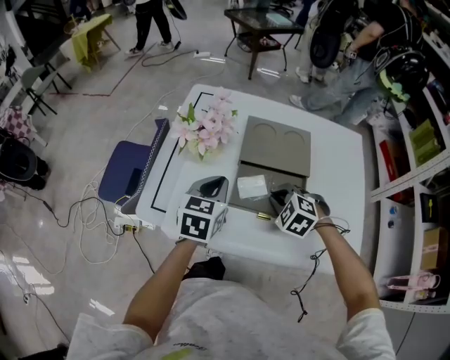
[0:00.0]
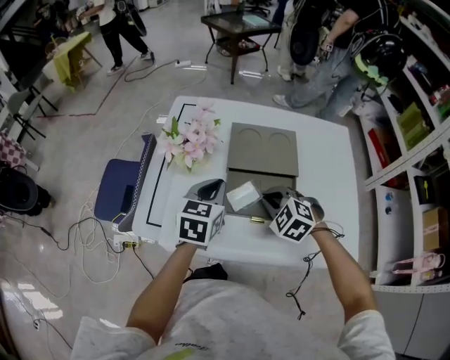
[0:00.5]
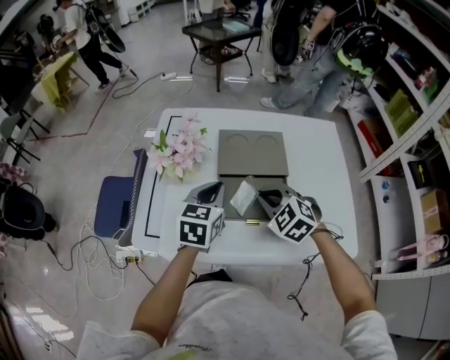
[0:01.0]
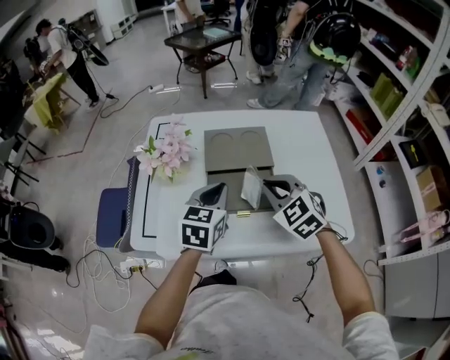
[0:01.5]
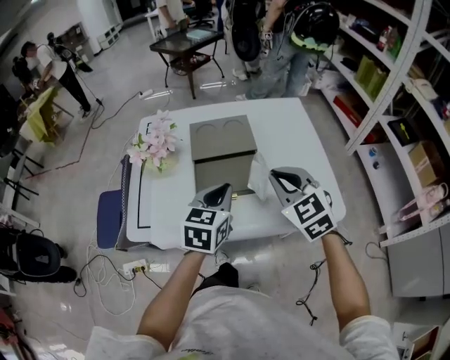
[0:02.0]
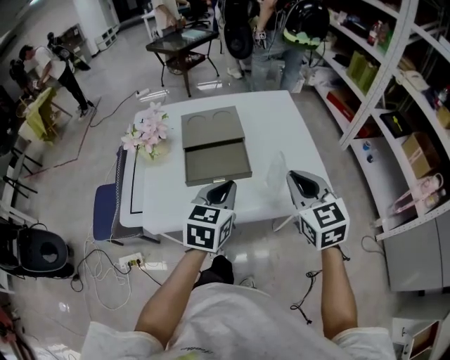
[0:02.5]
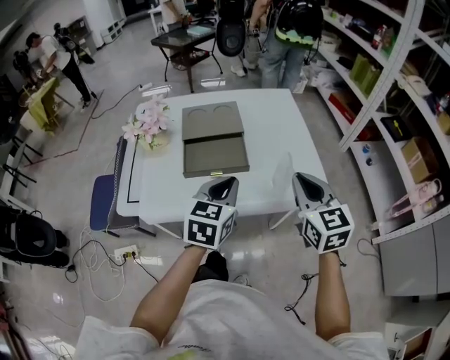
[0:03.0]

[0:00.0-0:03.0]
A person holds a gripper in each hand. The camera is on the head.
0:00.0 to 0:01.5: The left gripper shifts approximately 10 cm to the right, while the right gripper is displaced upward by some 15 cm, and changes its angle by roughly 40 degrees.
0:01.5 to 0:03.0: The right gripper shifts some 25 cm to the right and backward, and turns by approximately 40 degrees. The left gripper goes about 20 cm backward and to the right.

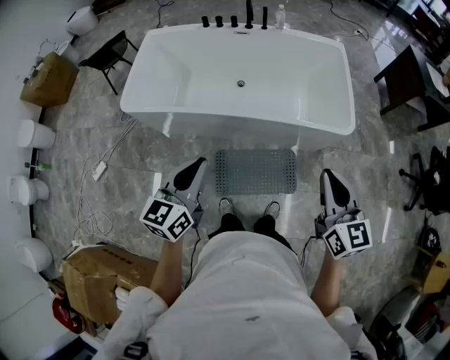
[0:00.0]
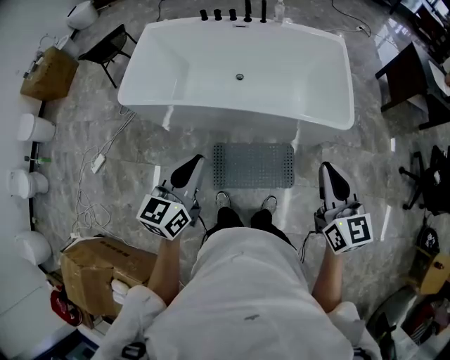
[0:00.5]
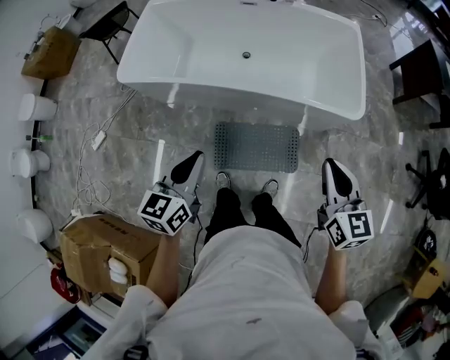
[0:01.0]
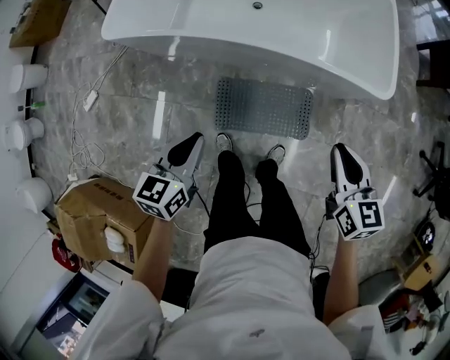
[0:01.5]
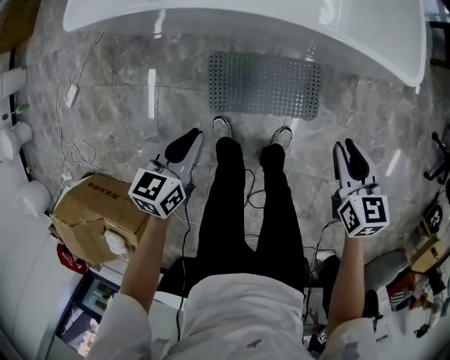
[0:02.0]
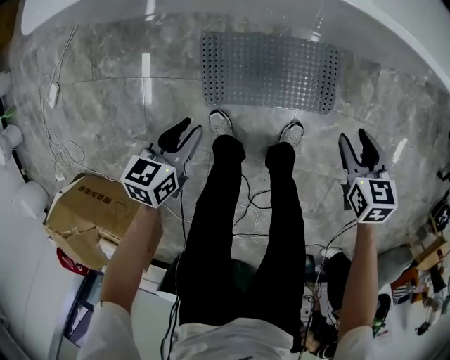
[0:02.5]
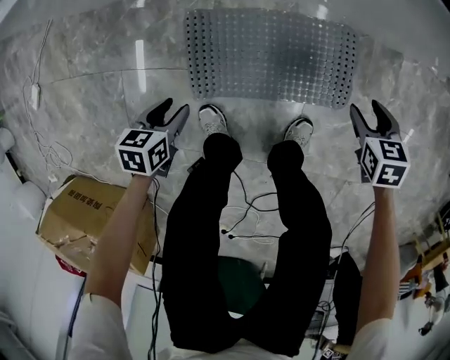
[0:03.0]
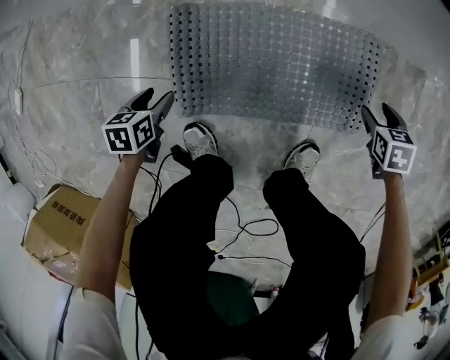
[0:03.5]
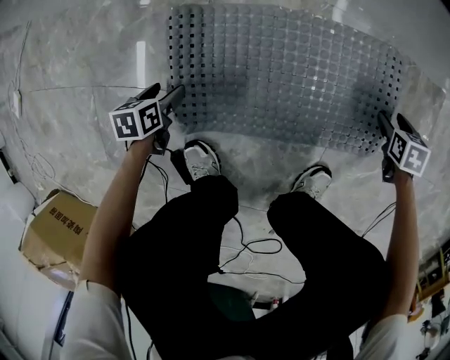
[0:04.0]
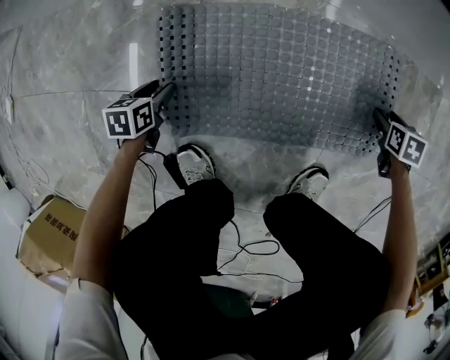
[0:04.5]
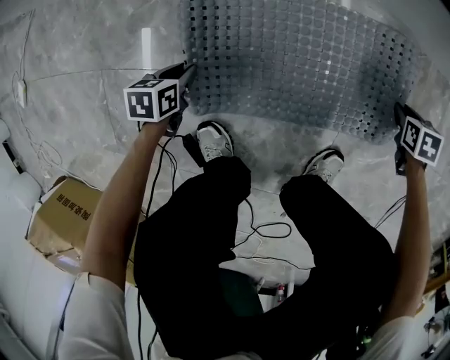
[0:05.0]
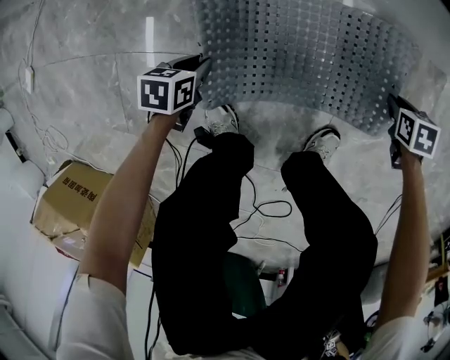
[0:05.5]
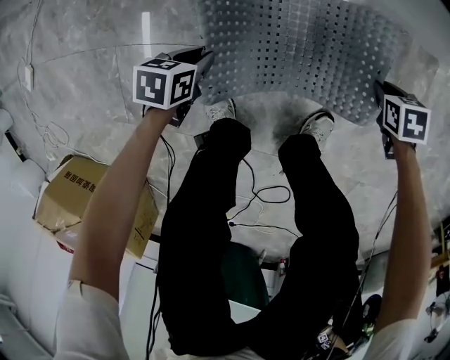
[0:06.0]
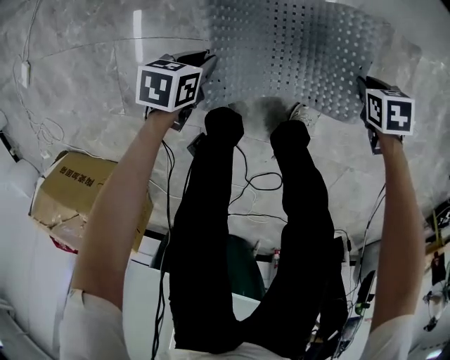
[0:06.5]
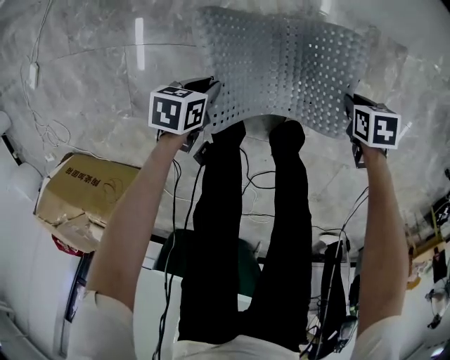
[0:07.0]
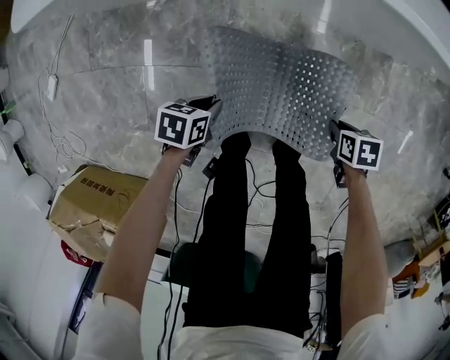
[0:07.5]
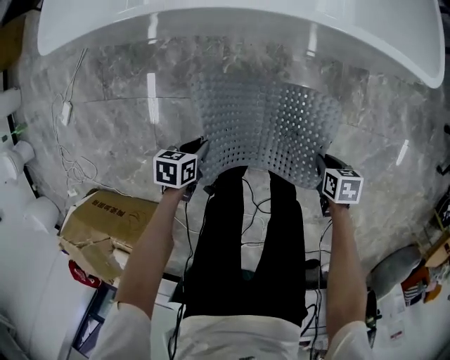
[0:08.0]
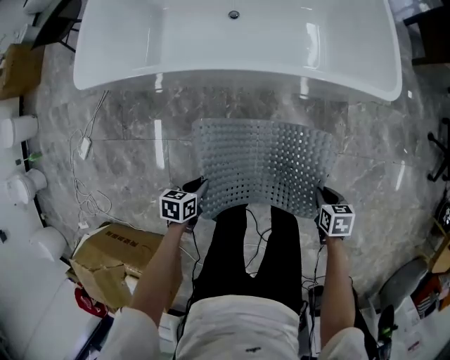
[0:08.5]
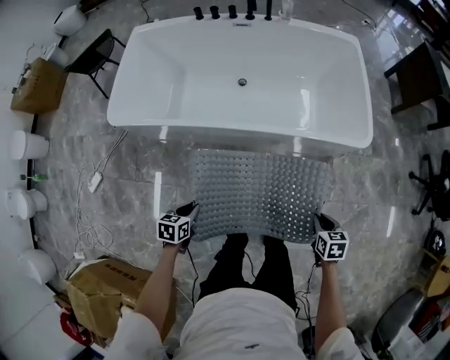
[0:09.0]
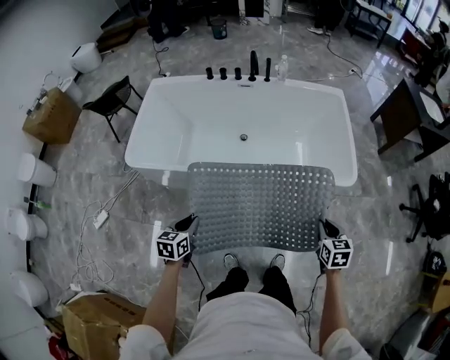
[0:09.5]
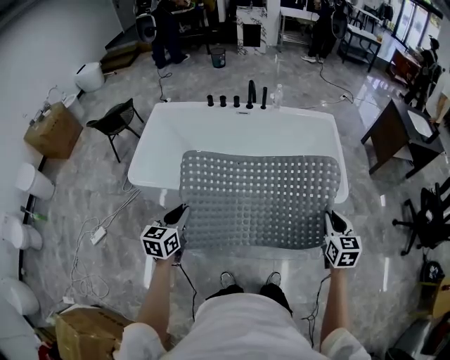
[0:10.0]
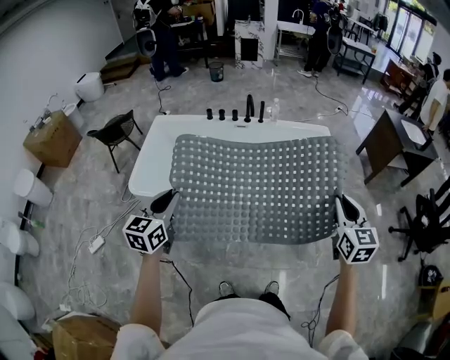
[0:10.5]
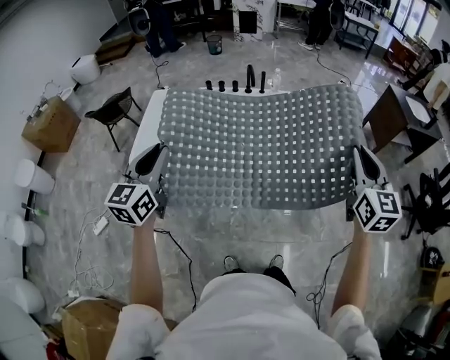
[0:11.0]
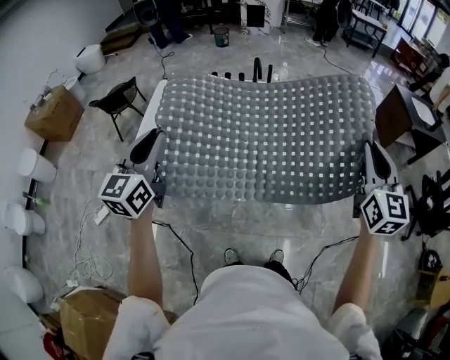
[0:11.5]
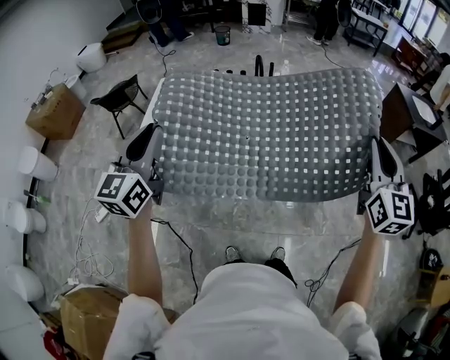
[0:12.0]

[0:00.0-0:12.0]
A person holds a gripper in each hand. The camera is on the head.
0:00.0 to 0:02.0: Both grippers travel together downward, approximately 35 cm. The left gripper turns by some 30 degrees. The right gripper tips its fingers downward by some 30 degrees.
0:02.0 to 0:04.0: The grippers both shift downward by roughly 70 cm. The right gripper tips its fingers downward by roughly 40 degrees, and opens. Meanwhile the left gripper changes its angle by roughly 30 degrees, and opens its fingers.
0:04.0 to 0:06.0: The grippers both shift upward by roughly 15 cm. The right gripper closes its fingers. The left gripper closes up.
0:06.0 to 0:08.0: The two grippers go some 30 cm upward. The right gripper rotates about 20 degrees.
0:08.0 to 0:10.0: The two grippers go roughly 50 cm upward. The left gripper angles its fingers upward, by about 40 degrees; the right gripper points its fingers roughly 50 degrees further upward.
0:10.0 to 0:12.0: The two grippers go roughly 25 cm upward. The right gripper points its fingers about 30 degrees further upward; the left gripper rotates roughly 30 degrees.

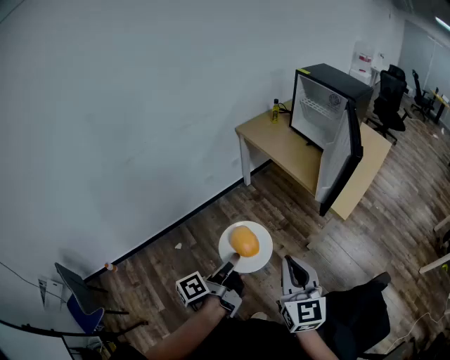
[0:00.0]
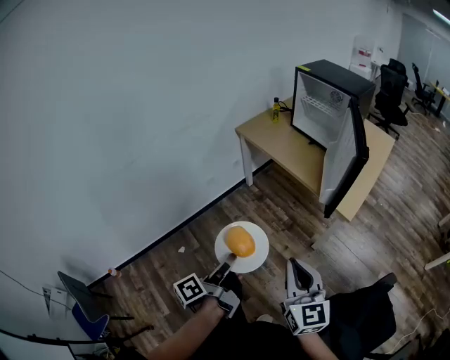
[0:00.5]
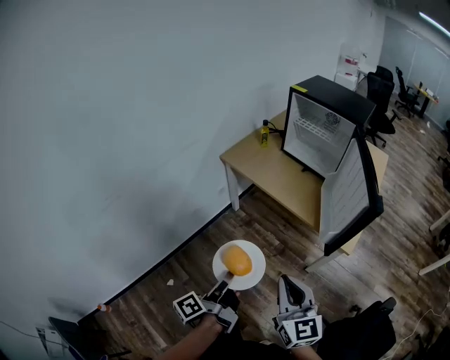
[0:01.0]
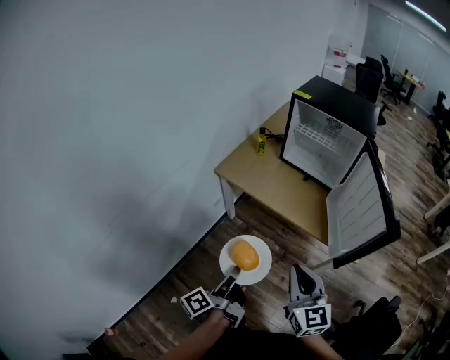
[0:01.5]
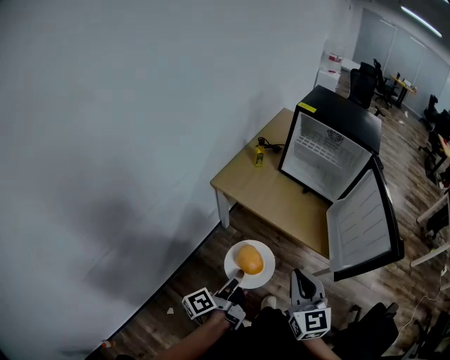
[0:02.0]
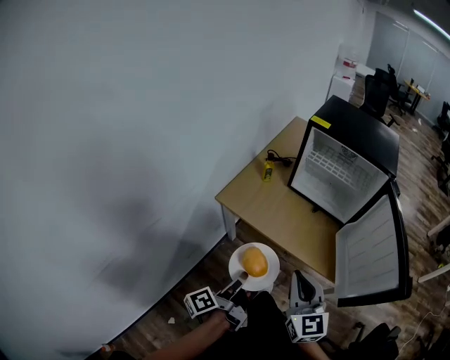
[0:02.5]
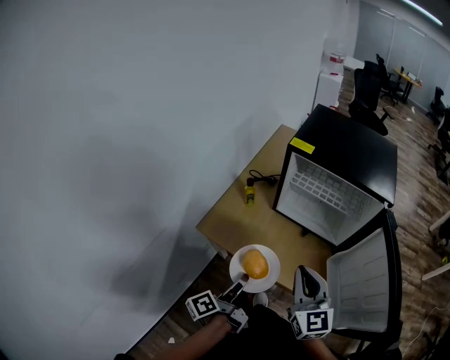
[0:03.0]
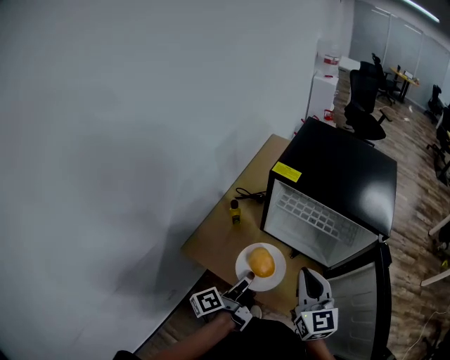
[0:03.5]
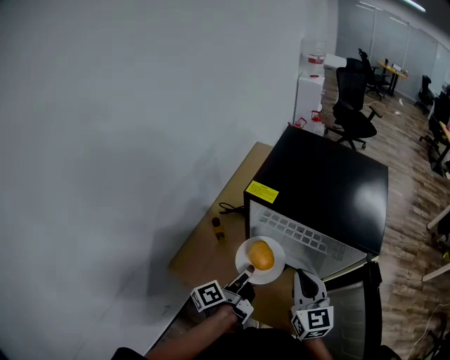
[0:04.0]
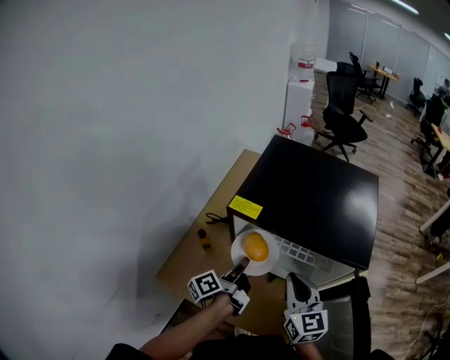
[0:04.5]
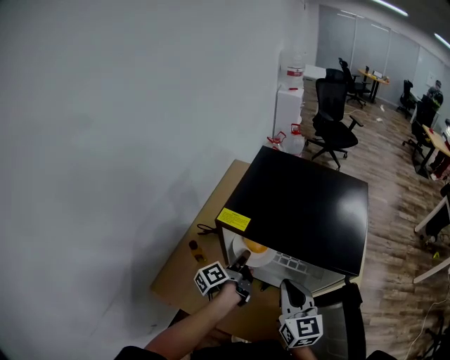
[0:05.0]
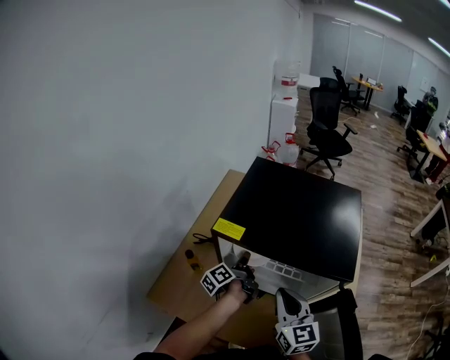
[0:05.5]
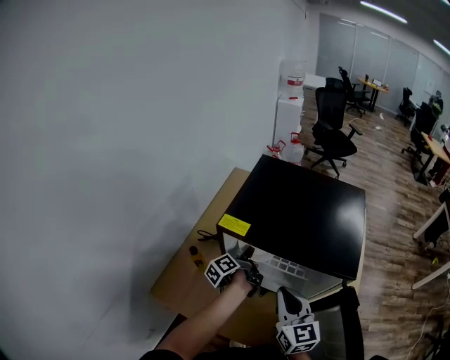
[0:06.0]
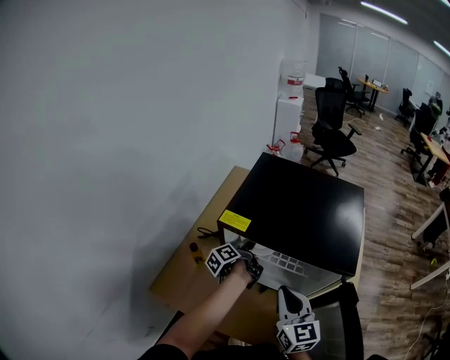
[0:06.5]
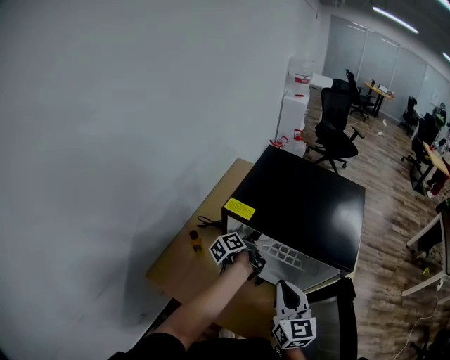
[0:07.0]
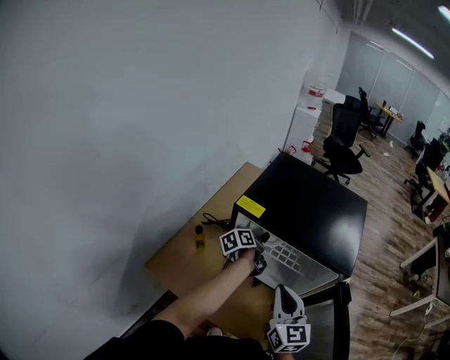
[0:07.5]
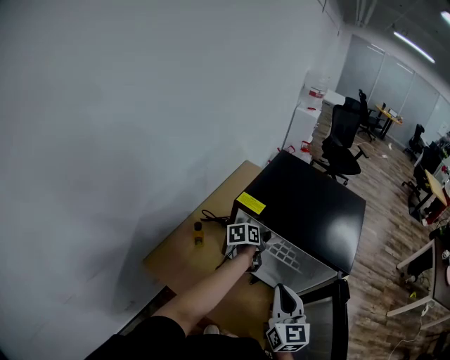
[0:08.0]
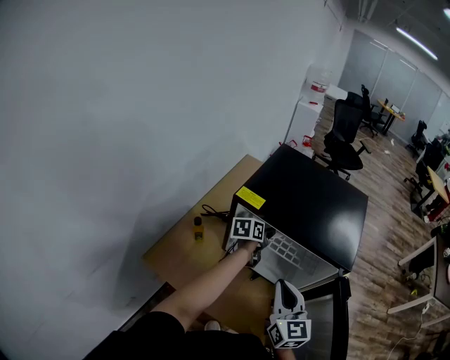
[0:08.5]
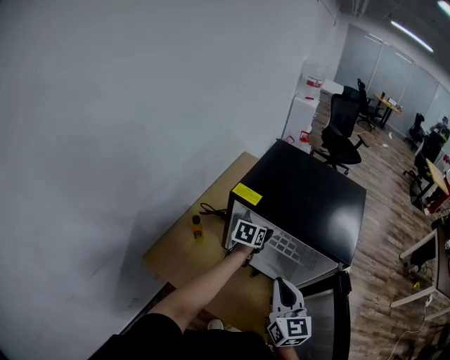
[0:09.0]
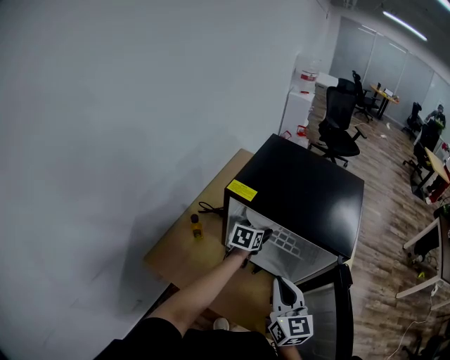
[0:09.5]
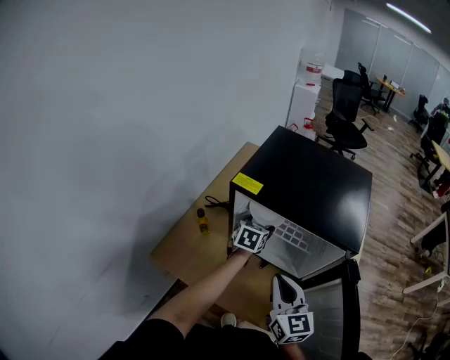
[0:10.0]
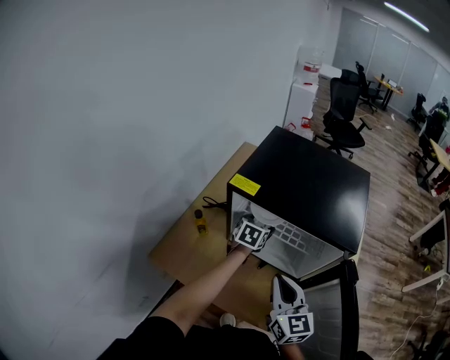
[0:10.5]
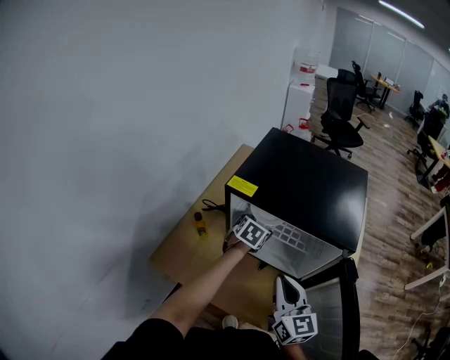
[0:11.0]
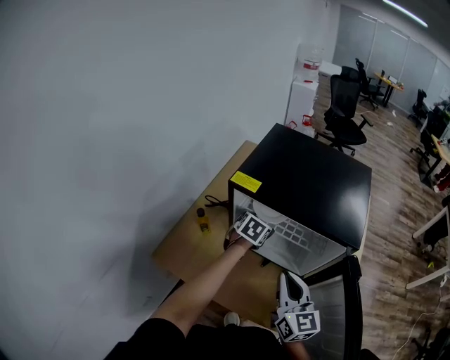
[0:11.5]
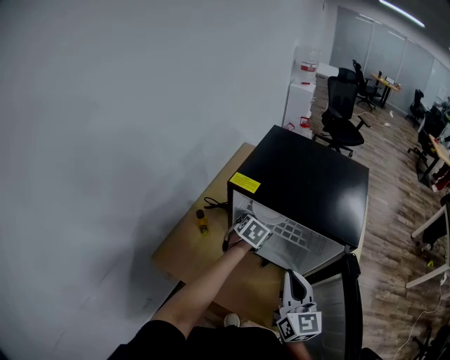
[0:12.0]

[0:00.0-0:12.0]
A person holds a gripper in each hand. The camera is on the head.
0:00.0 to 0:02.0: The two grippers go roughly 40 cm forward.
0:02.0 to 0:04.0: The pair of grippers is taken forward, approximately 40 cm.
0:04.0 to 0:06.0: The left gripper goes approximately 20 cm forward.
0:06.0 to 0:08.0: The left gripper ends up some 5 cm from where it was, changes its angle by roughly 40 degrees, and opens up.
0:08.0 to 0:10.0: The left gripper rotates around the line of its fingers by approximately 40 degrees, clockwise from behind, and opens its fingers.
0:10.0 to 0:12.0: The left gripper changes its angle by roughly 20 degrees.
